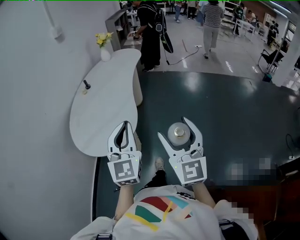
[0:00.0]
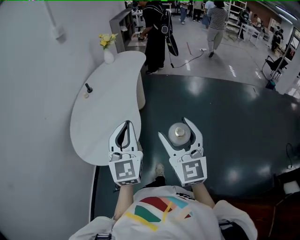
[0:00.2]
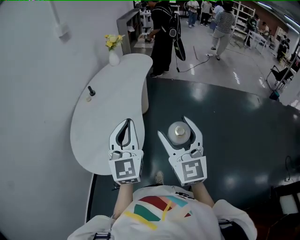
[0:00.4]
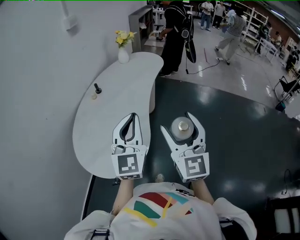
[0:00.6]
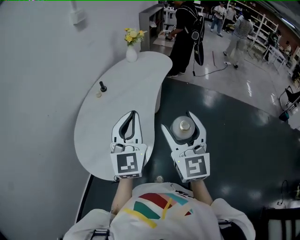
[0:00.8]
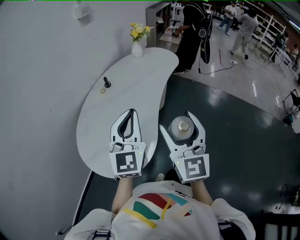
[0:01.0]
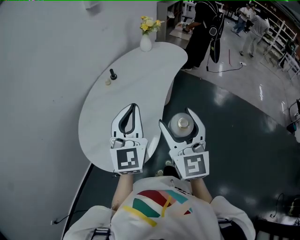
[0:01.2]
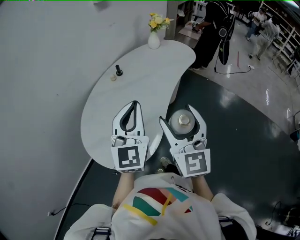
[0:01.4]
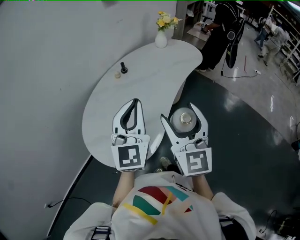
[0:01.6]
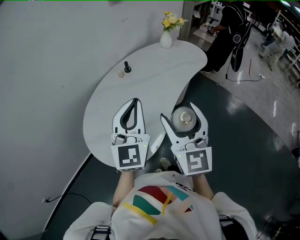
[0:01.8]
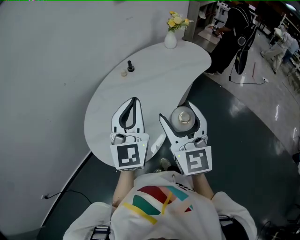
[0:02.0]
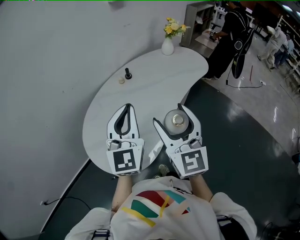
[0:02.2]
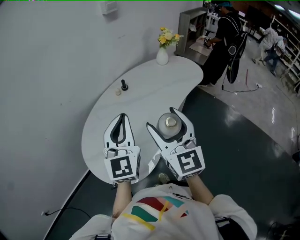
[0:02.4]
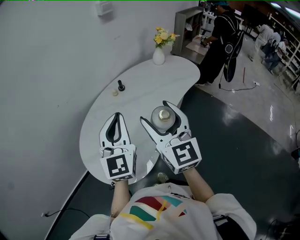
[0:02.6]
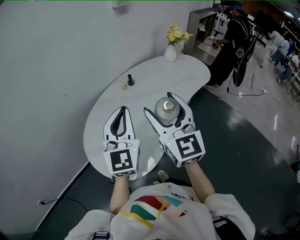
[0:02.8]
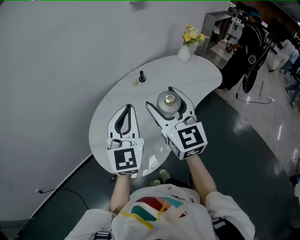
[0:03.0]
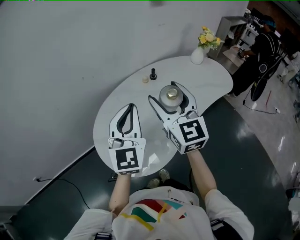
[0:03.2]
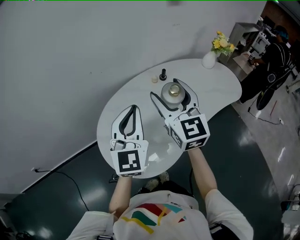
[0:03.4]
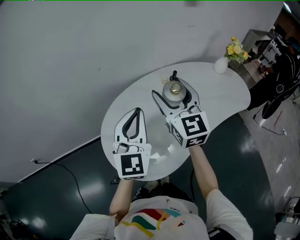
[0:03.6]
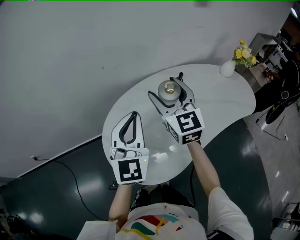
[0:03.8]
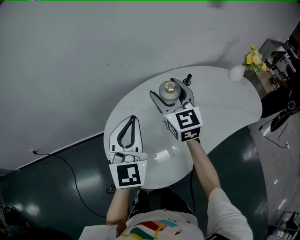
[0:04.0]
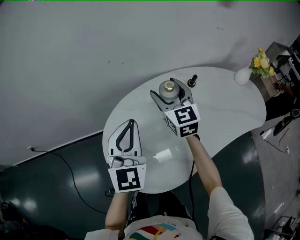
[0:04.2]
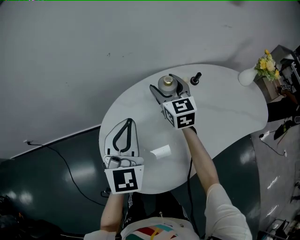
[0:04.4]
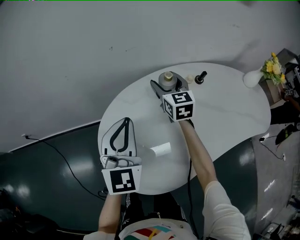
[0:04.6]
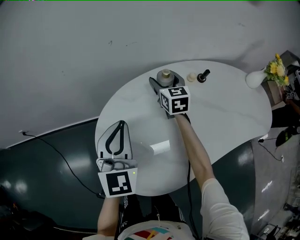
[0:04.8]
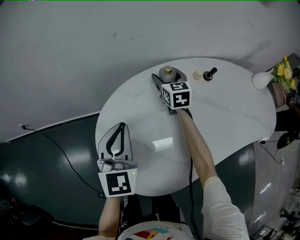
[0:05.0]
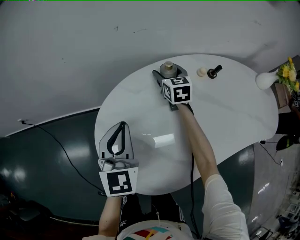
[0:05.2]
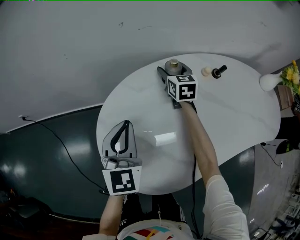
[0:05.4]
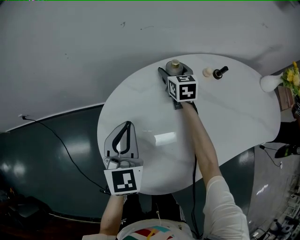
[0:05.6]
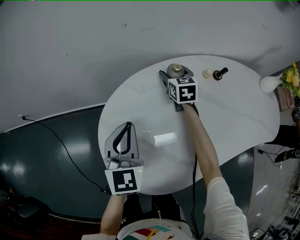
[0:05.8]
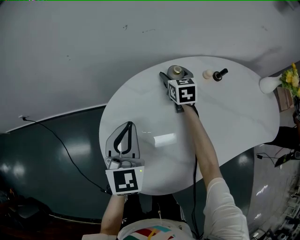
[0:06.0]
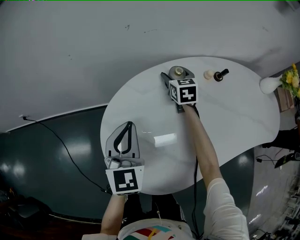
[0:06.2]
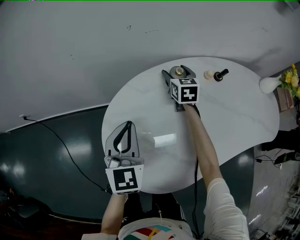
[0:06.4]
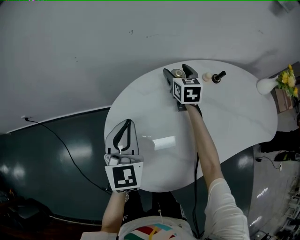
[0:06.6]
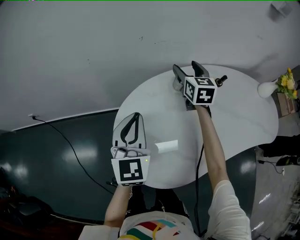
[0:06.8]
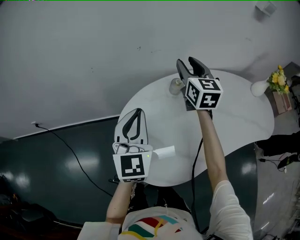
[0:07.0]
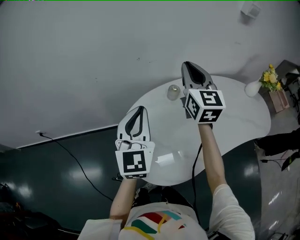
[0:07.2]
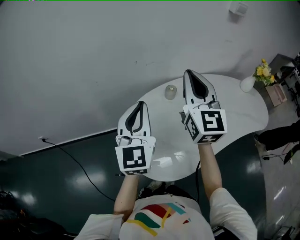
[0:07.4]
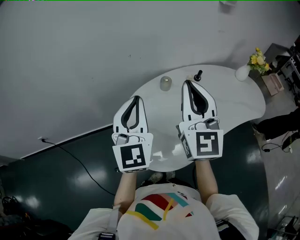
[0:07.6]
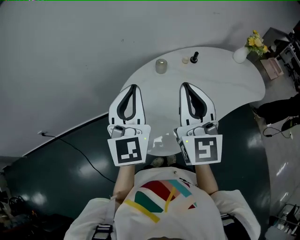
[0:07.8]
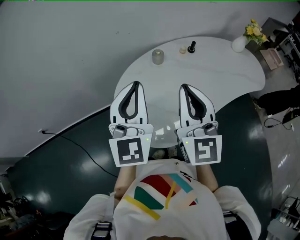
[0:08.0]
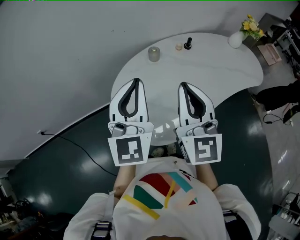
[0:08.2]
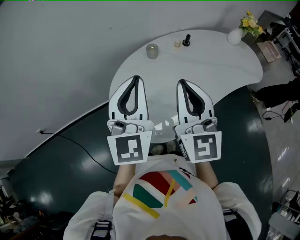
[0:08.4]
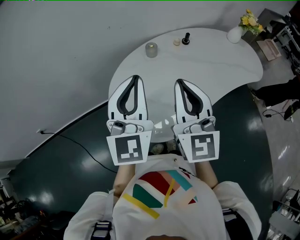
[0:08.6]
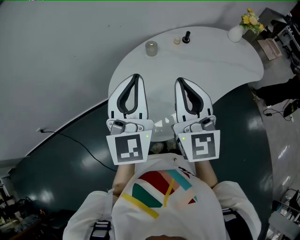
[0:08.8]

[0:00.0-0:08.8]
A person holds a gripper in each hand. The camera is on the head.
0:00.0 to 0:01.4: Both grippers move forward, roughly 30 cm. The right gripper rotates some 20 degrees, while the left gripper rotates approximately 20 degrees.
0:01.4 to 0:03.0: The right gripper is displaced forward and to the left by some 15 cm, and rotates some 30 degrees. Meanwhile the left gripper goes some 10 cm forward and to the left.
0:03.0 to 0:04.4: The right gripper moves forward, downward and to the left, approximately 35 cm, and turns by about 30 degrees. The left gripper shifts about 20 cm to the left, downward and forward, and changes its angle by about 20 degrees.
0:04.4 to 0:05.8: The right gripper shifts about 20 cm downward and forward. Meanwhile the left gripper travels downward by approximately 10 cm.
0:05.8 to 0:07.4: The left gripper goes some 20 cm upward, while the right gripper moves upward and backward, some 40 cm, angles its fingers upward, by about 40 degrees, and closes up.
0:07.4 to 0:08.8: The left gripper shifts approximately 10 cm backward and to the right. Meanwhile the right gripper goes about 15 cm backward.

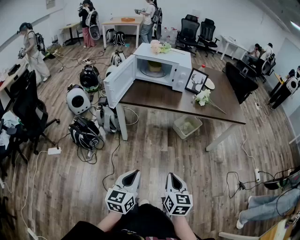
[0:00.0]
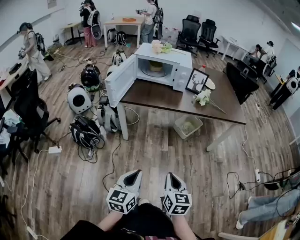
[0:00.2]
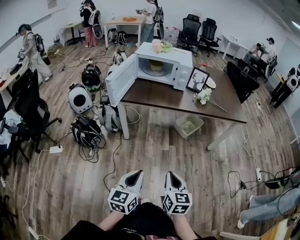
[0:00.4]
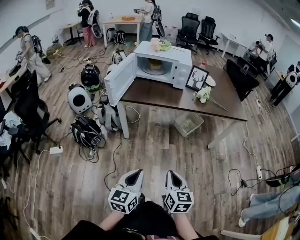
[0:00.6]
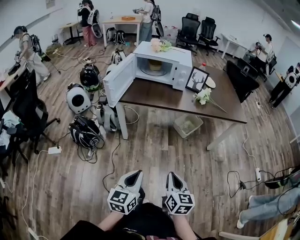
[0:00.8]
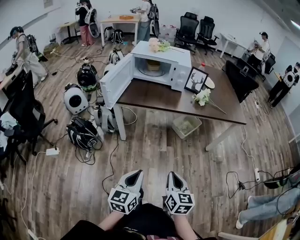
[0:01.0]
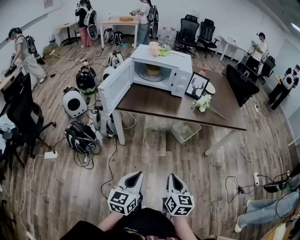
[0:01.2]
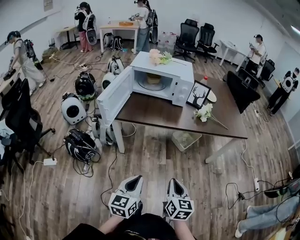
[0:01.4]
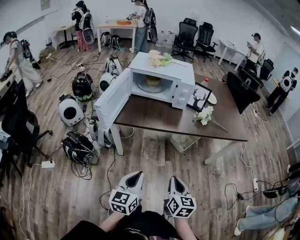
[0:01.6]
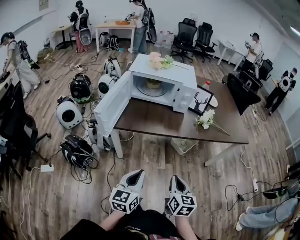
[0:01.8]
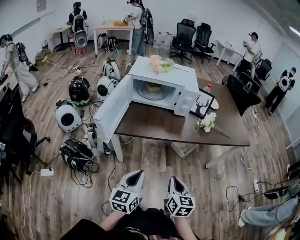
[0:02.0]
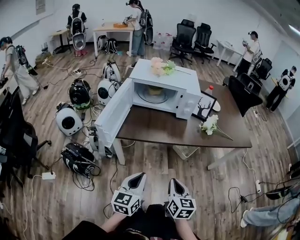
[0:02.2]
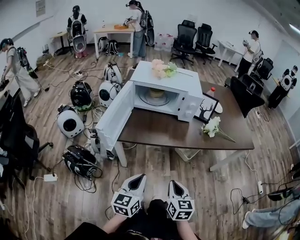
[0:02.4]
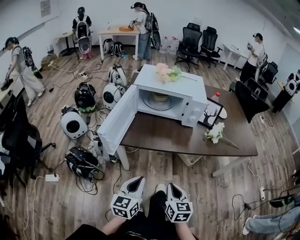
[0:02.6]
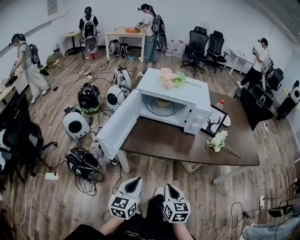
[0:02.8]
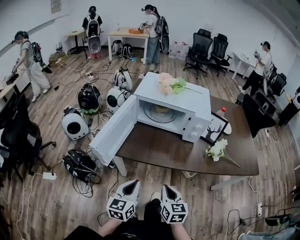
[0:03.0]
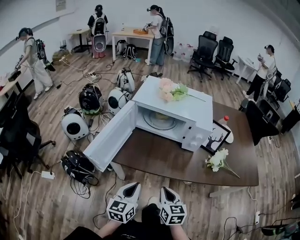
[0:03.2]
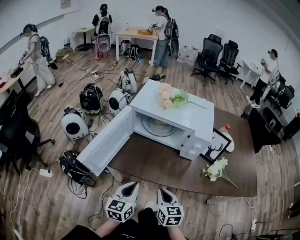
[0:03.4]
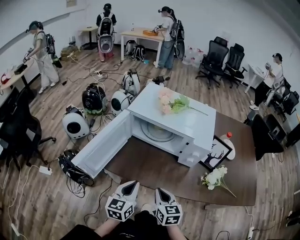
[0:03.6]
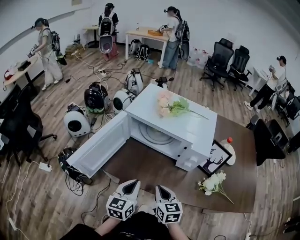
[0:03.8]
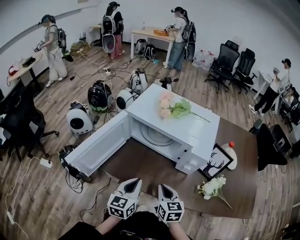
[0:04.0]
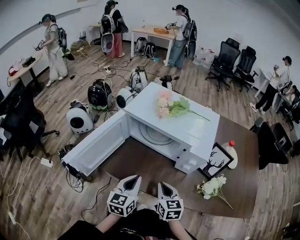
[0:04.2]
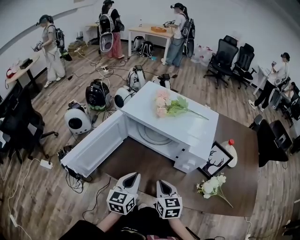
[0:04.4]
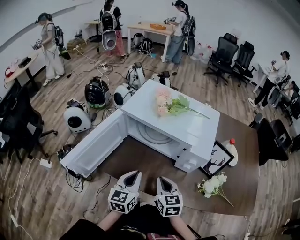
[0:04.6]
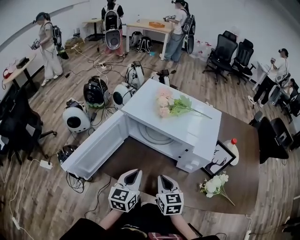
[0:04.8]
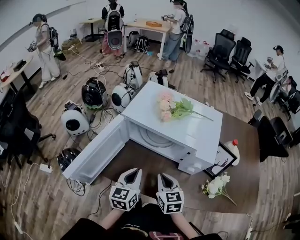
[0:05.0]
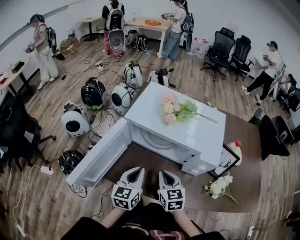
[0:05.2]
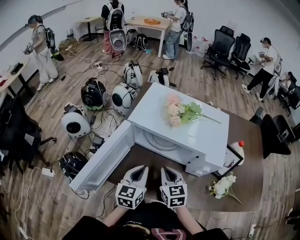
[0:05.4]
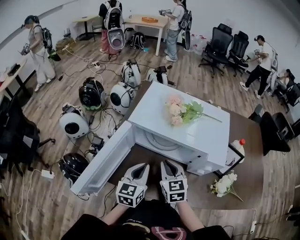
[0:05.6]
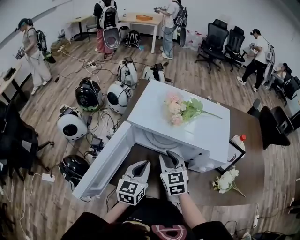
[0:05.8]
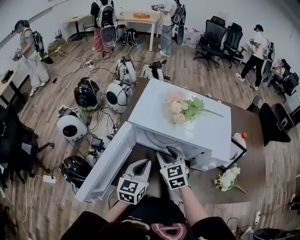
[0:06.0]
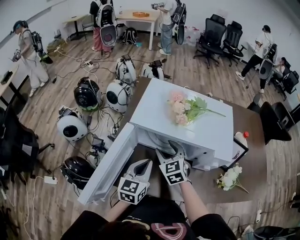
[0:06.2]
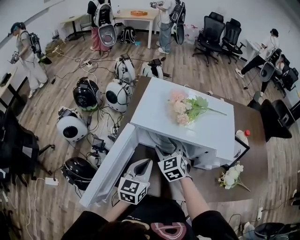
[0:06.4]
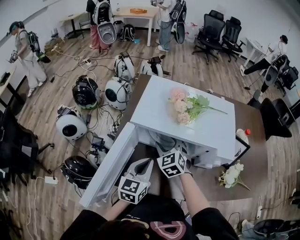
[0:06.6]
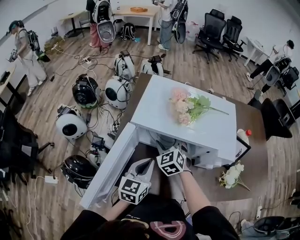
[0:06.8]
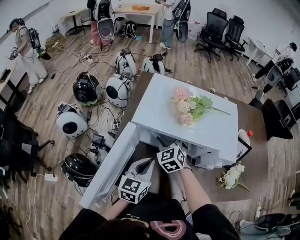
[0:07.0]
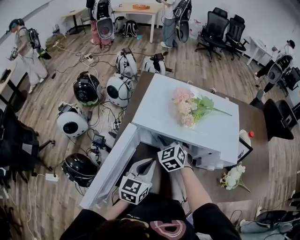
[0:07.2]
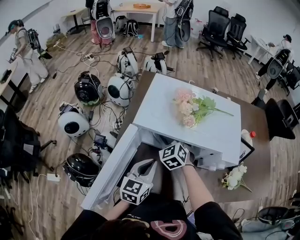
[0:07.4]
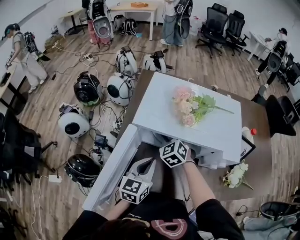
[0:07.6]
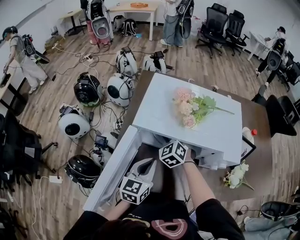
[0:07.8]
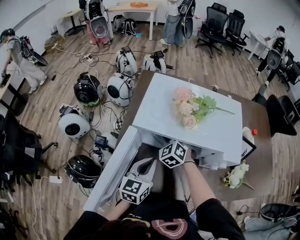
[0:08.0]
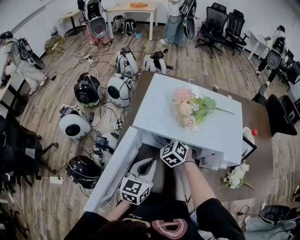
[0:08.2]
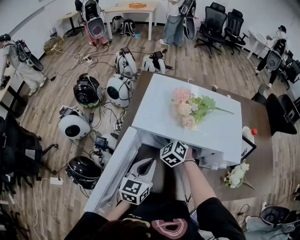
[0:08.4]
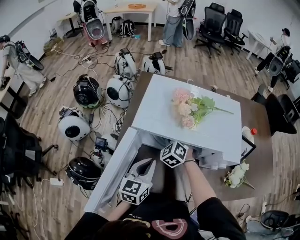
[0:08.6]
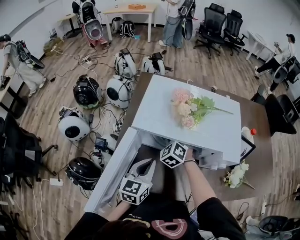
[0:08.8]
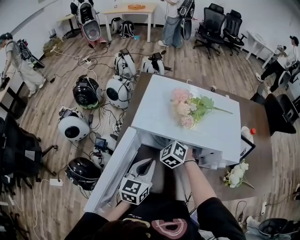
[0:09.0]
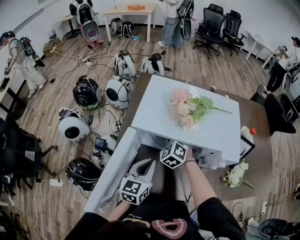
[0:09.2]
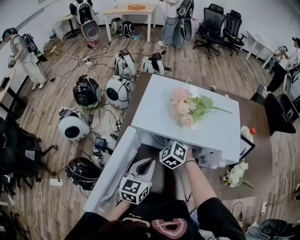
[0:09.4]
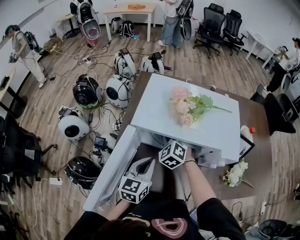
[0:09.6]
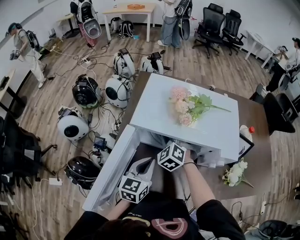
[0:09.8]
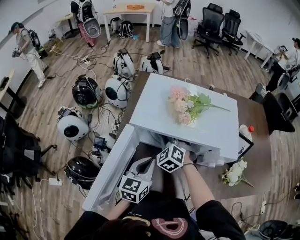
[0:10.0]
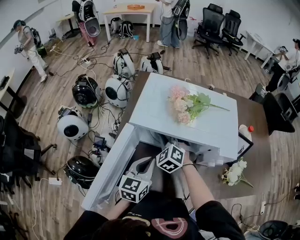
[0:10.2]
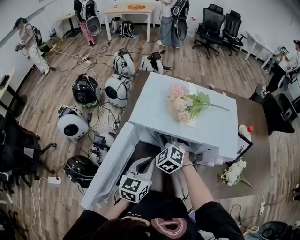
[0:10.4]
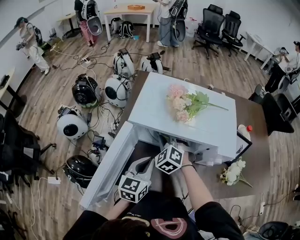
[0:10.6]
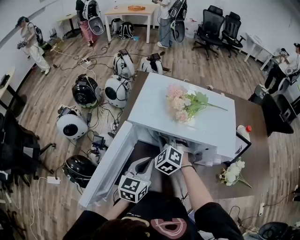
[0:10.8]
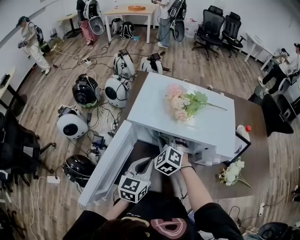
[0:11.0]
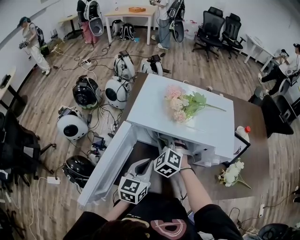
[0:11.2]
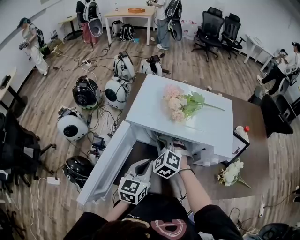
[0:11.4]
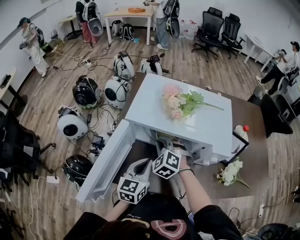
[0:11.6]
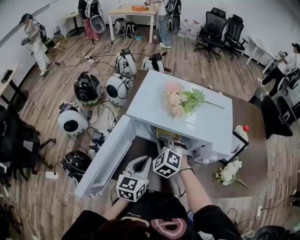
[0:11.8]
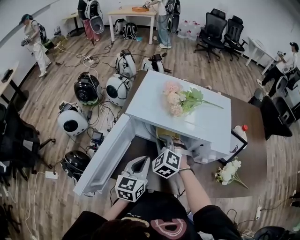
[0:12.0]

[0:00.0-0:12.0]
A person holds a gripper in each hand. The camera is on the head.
0:00.0 to 0:01.6: Both grippers travel together forward, about 15 cm.
0:01.6 to 0:03.0: The left gripper is displaced forward by about 20 cm, while the right gripper goes about 20 cm forward and to the left.
0:03.0 to 0:04.4: The left gripper moves forward and to the right, about 20 cm. The right gripper travels forward by approximately 20 cm.
0:04.4 to 0:06.0: The right gripper moves forward and to the left, roughly 20 cm, and opens up; the left gripper shifts approximately 15 cm forward and to the left.
0:06.0 to 0:07.6: The right gripper moves forward, some 10 cm, swivels about 20 degrees, and opens up.
0:07.6 to 0:09.0: The right gripper closes.
0:09.0 to 0:10.4: The right gripper moves roughly 5 cm.
0:10.4 to 0:12.0: The right gripper moves approximately 5 cm.

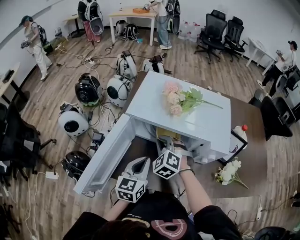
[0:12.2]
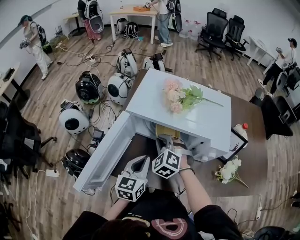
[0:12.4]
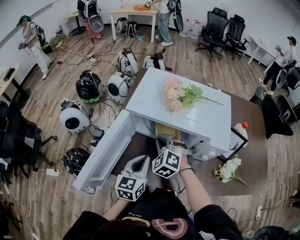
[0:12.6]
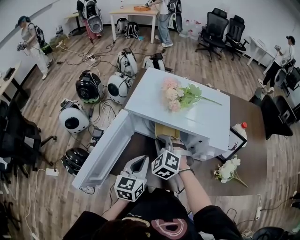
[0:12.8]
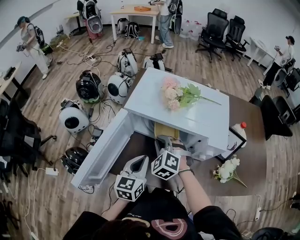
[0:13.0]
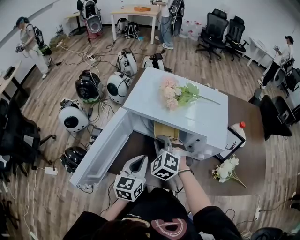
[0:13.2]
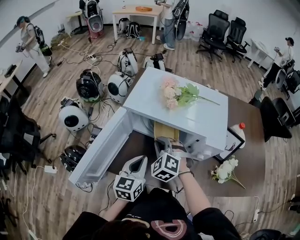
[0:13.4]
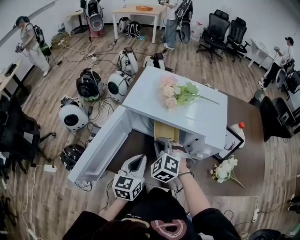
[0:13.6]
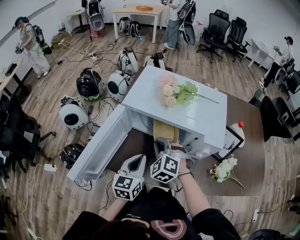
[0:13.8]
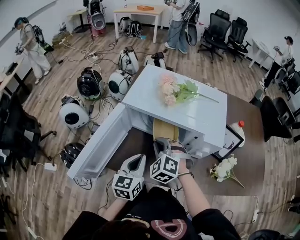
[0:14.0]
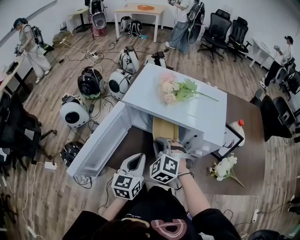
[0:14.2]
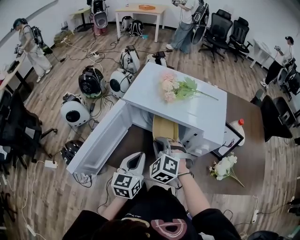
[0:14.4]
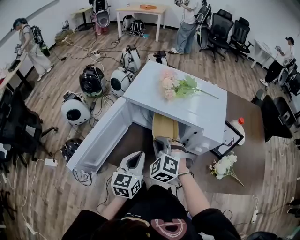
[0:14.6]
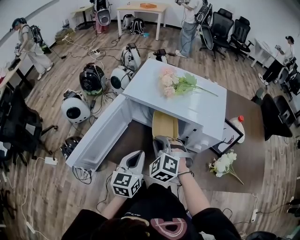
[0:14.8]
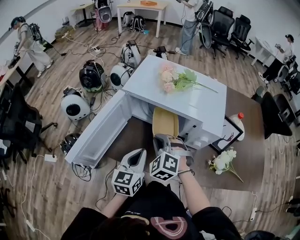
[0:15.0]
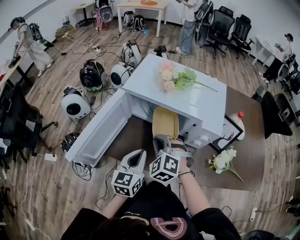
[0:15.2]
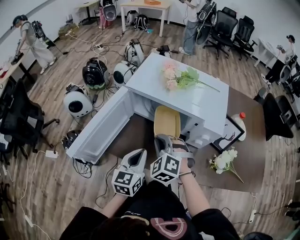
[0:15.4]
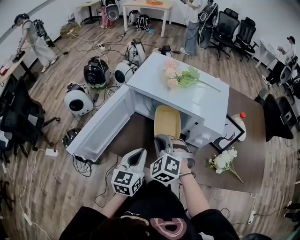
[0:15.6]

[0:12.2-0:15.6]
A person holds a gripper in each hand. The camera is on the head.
0:12.2 to 0:13.8: The right gripper changes place by roughly 5 cm.
0:13.8 to 0:15.6: The two grippers go about 5 cm backward.
